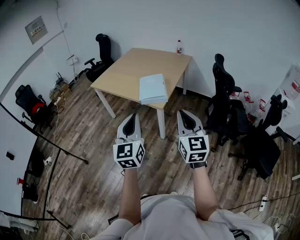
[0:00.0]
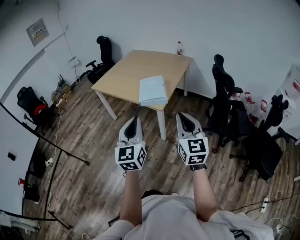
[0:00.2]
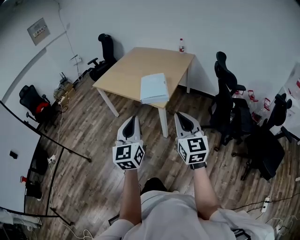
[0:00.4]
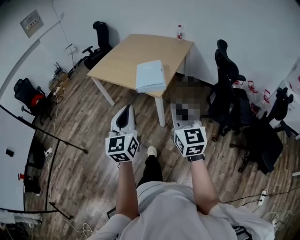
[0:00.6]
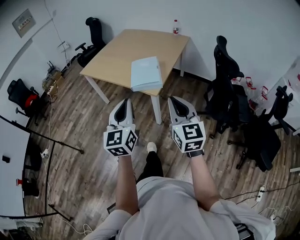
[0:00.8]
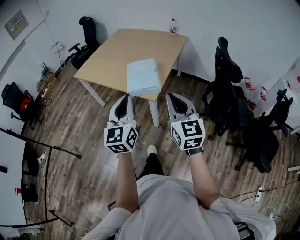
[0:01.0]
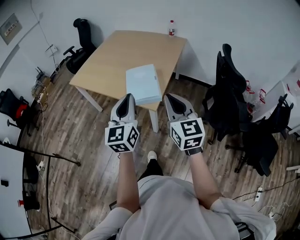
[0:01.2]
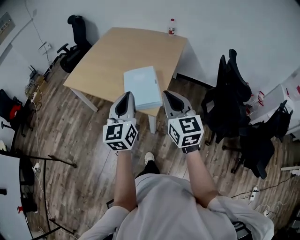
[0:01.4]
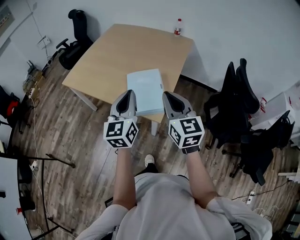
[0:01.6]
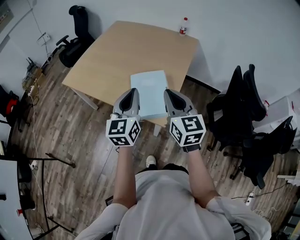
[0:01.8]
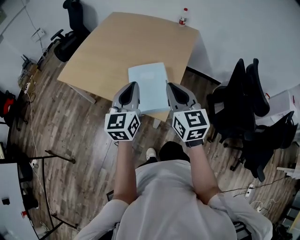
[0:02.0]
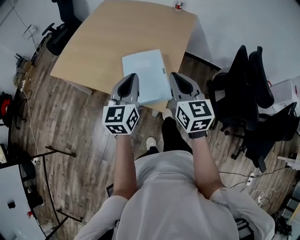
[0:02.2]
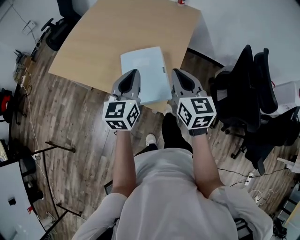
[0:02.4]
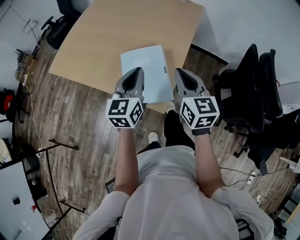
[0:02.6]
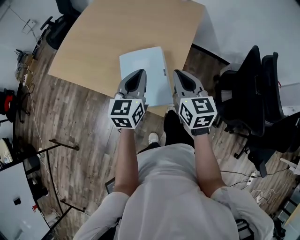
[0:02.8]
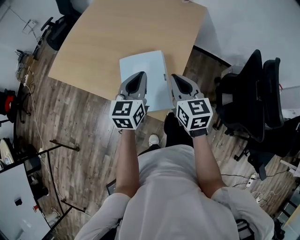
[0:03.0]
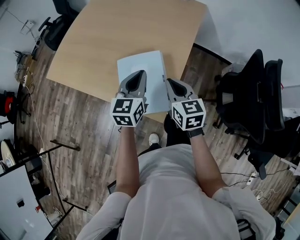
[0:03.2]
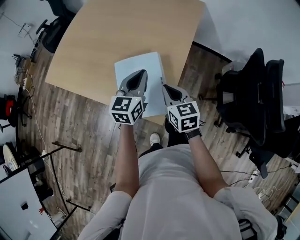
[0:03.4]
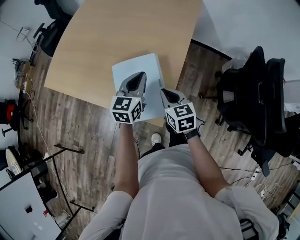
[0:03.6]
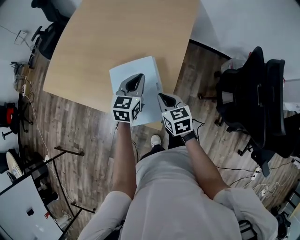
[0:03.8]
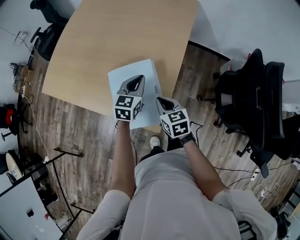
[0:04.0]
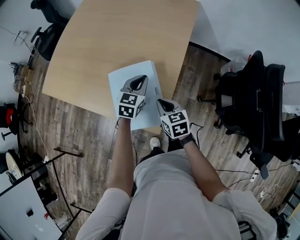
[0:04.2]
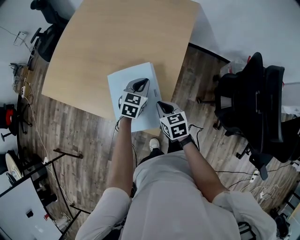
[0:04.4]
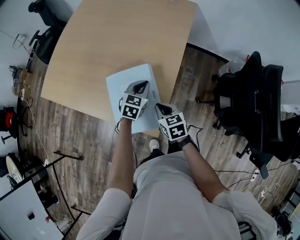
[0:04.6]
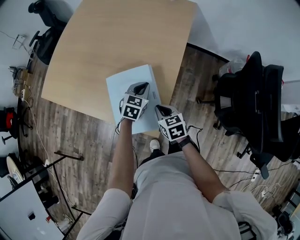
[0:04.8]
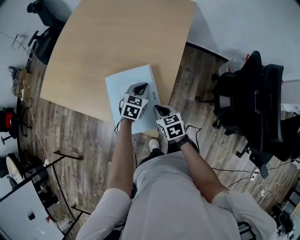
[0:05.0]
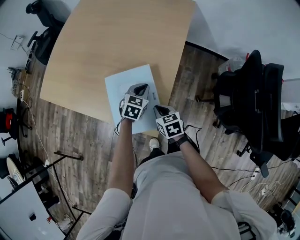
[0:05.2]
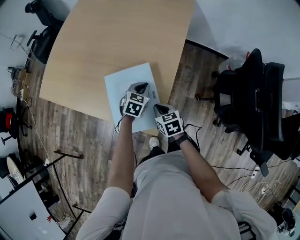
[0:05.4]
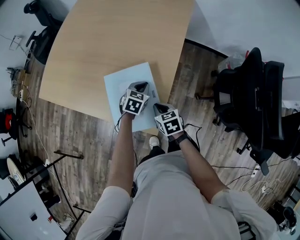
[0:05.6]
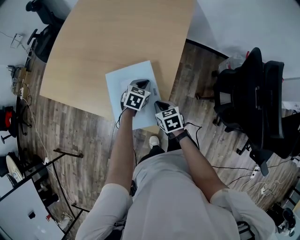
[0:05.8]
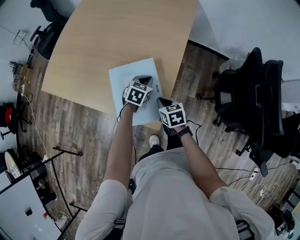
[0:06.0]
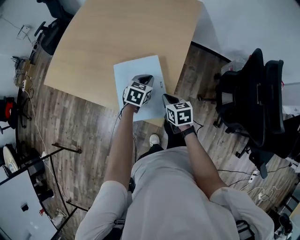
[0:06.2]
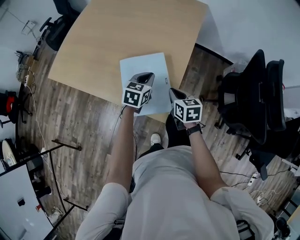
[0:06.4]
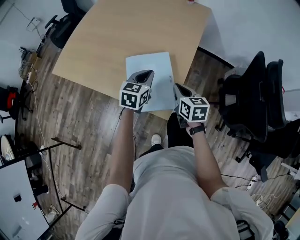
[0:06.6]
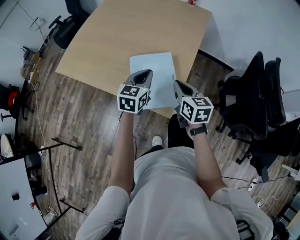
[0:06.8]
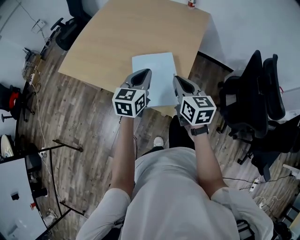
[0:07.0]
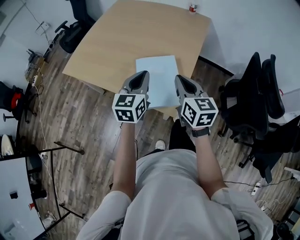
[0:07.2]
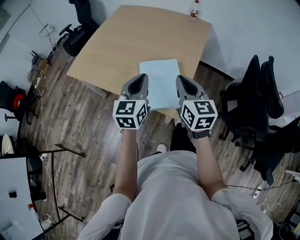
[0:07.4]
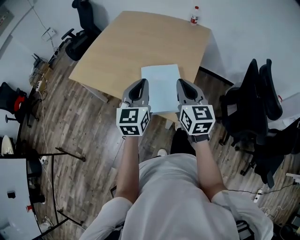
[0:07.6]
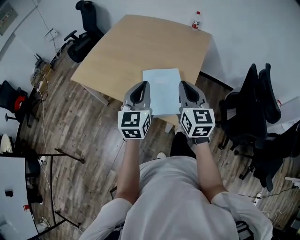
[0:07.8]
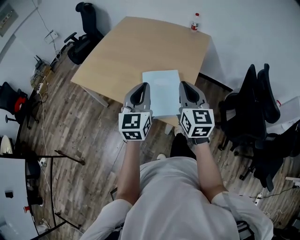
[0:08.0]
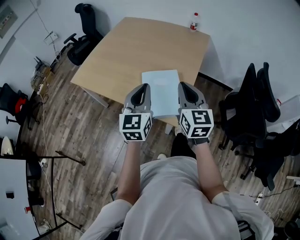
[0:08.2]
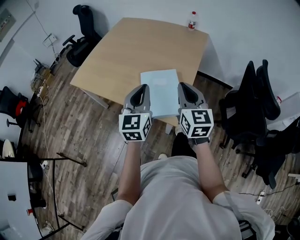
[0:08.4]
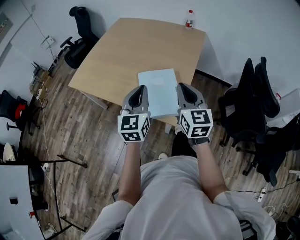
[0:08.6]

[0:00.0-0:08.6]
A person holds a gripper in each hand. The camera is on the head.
0:00.0 to 0:01.4: The grippers both shift forward by approximately 30 cm.
0:01.4 to 0:02.8: The grippers both shift forward and downward by some 25 cm.
0:02.8 to 0:04.4: The left gripper is displaced downward and forward by about 20 cm, and turns by approximately 30 degrees. Meanwhile the right gripper moves downward, approximately 20 cm, and changes its angle by roughly 30 degrees.
0:04.4 to 0:05.8: The two grippers go approximately 5 cm downward.
0:05.8 to 0:07.2: The left gripper travels upward, backward and to the left by roughly 30 cm, and angles its fingers upward, by roughly 40 degrees; the right gripper moves upward, approximately 25 cm, and tips its fingers upward by roughly 30 degrees.
0:07.2 to 0:08.6: The left gripper travels upward and backward by about 5 cm, while the right gripper changes place by roughly 5 cm.

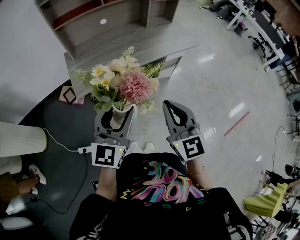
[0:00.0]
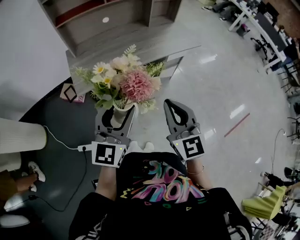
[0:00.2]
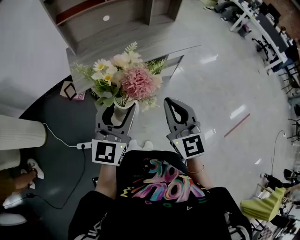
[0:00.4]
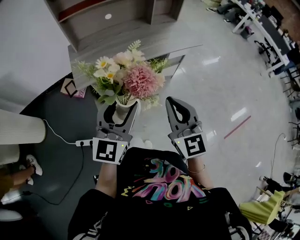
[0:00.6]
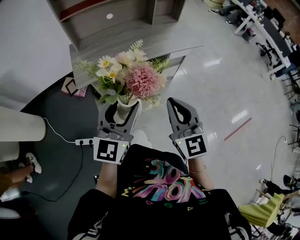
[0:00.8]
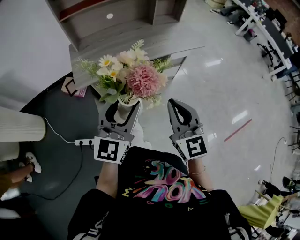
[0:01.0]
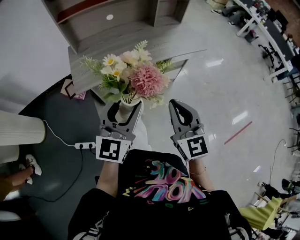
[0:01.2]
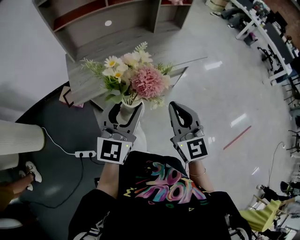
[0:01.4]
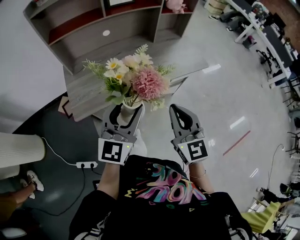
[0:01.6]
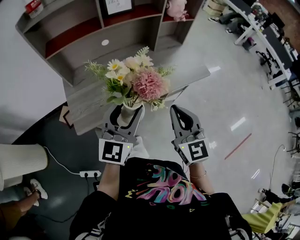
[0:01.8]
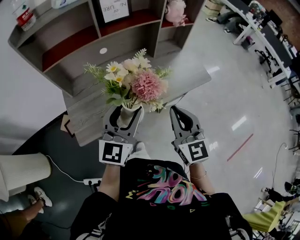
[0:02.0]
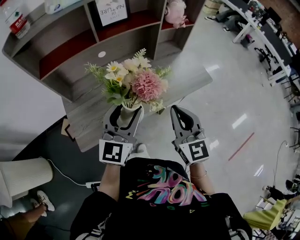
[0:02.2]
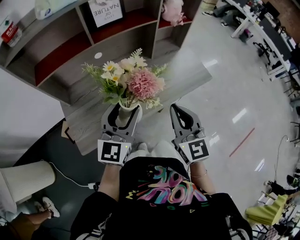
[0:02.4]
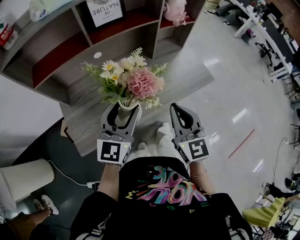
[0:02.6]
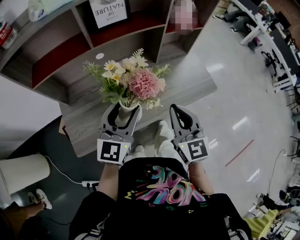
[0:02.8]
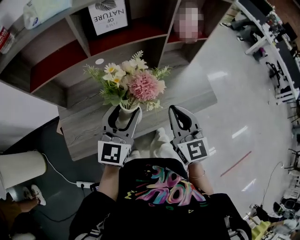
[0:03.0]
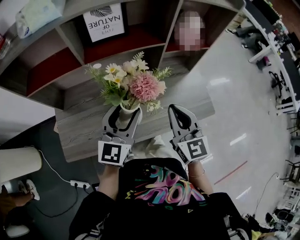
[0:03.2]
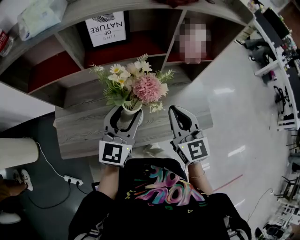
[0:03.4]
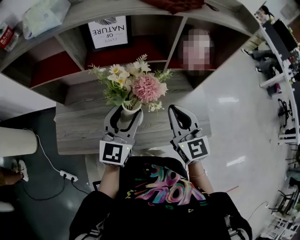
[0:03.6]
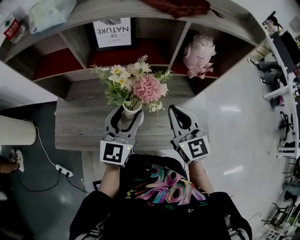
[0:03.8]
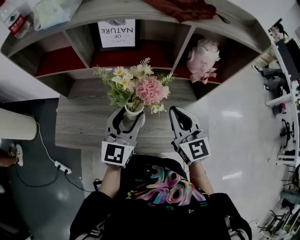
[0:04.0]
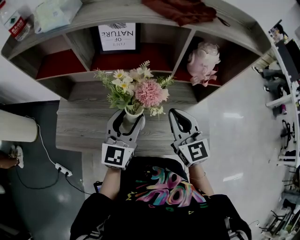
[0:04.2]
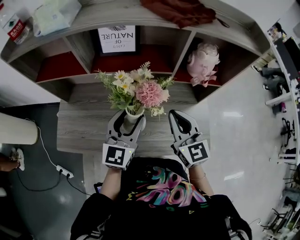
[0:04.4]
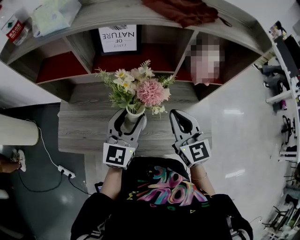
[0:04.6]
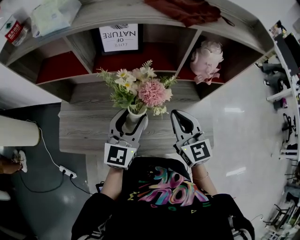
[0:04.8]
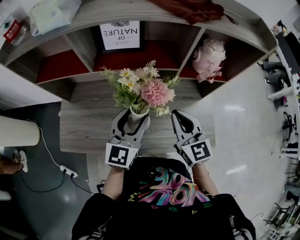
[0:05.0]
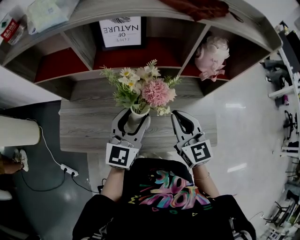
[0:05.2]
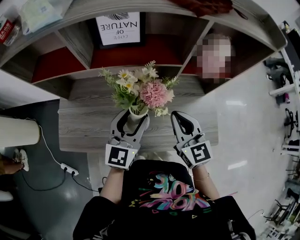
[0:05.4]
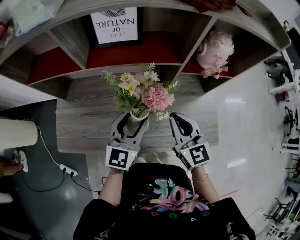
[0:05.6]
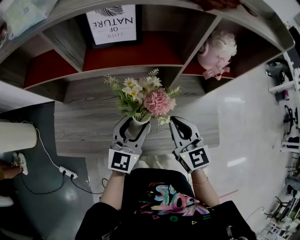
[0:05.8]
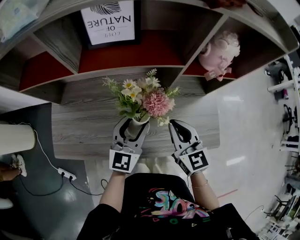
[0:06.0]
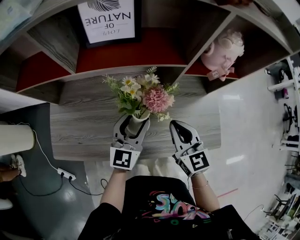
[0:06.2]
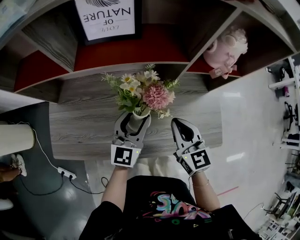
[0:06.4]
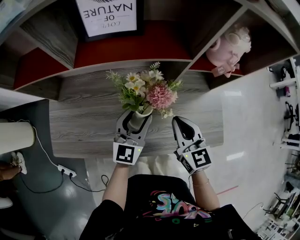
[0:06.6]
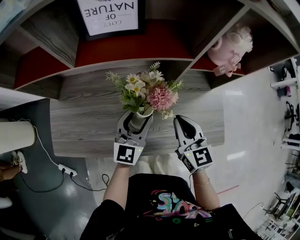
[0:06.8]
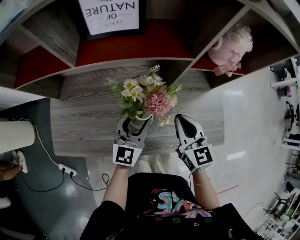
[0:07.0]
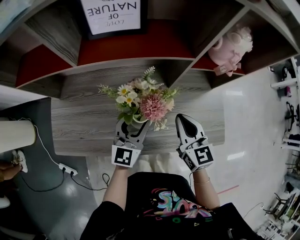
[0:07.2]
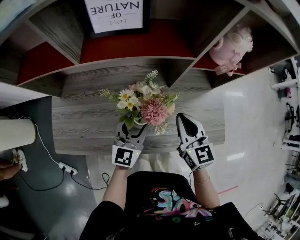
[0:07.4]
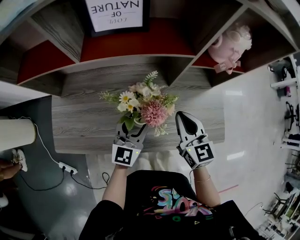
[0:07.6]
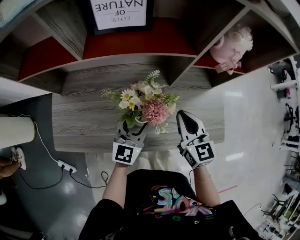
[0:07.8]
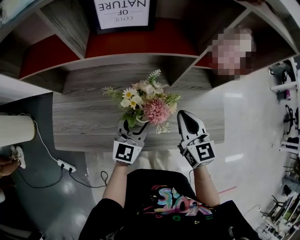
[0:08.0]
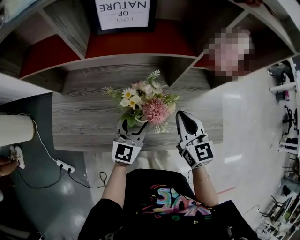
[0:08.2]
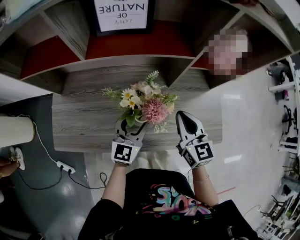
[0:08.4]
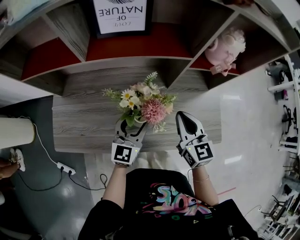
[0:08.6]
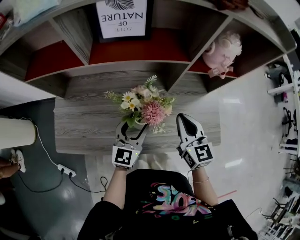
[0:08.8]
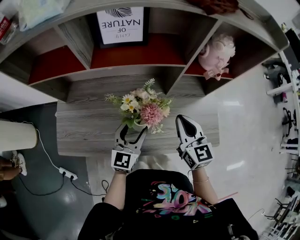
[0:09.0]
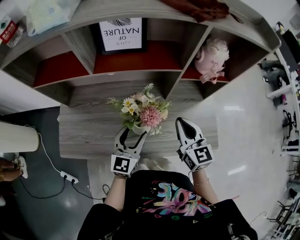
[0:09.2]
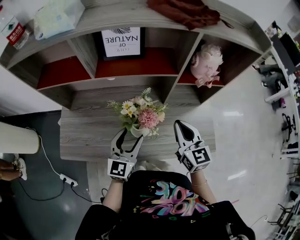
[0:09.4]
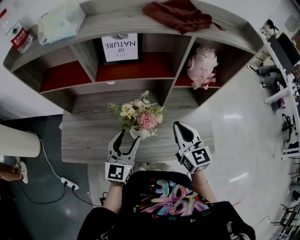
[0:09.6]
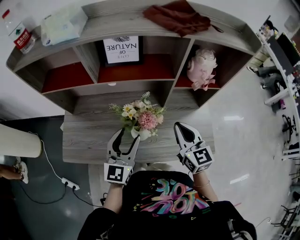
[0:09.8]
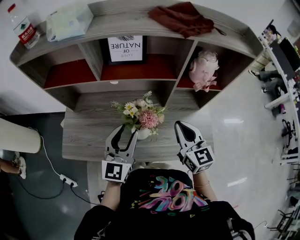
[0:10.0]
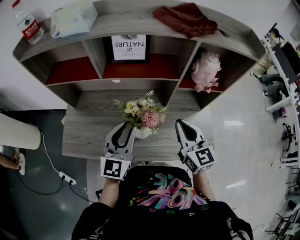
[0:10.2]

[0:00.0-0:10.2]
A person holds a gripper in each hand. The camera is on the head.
0:00.0 to 0:01.4: The grippers stay close to where they were, moving slightly.
0:01.4 to 0:03.0: Both grippers travel together forward, about 15 cm.
0:03.0 to 0:04.4: The grippers both shift forward and to the right by approximately 20 cm. The right gripper swivels about 20 degrees.
0:05.8 to 0:07.2: The two grippers go approximately 5 cm downward.
0:07.2 to 0:08.8: The grippers move only a little.
0:08.8 to 0:10.2: Both grippers travel together upward, about 10 cm. The left gripper closes its fingers.

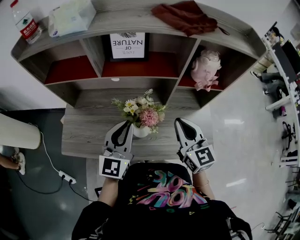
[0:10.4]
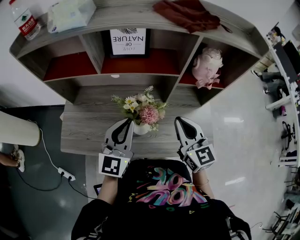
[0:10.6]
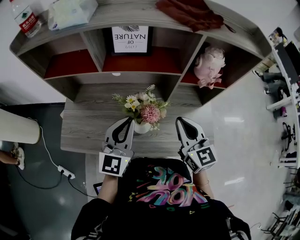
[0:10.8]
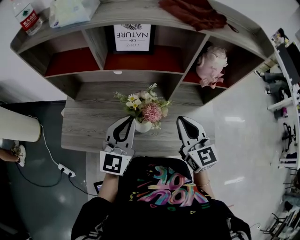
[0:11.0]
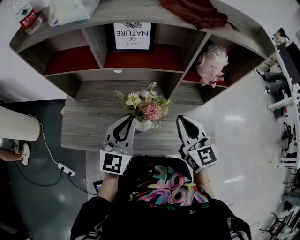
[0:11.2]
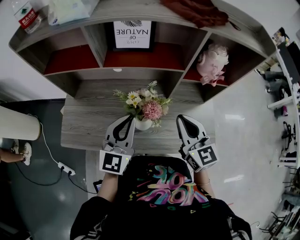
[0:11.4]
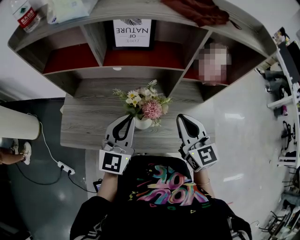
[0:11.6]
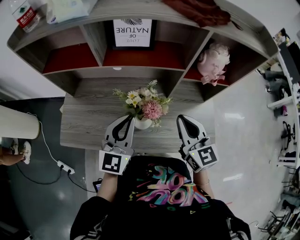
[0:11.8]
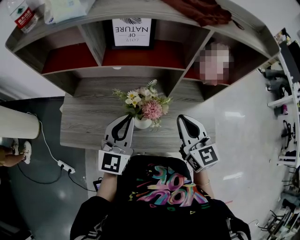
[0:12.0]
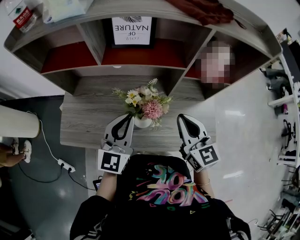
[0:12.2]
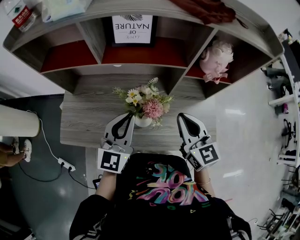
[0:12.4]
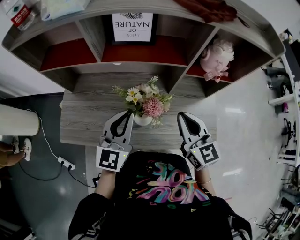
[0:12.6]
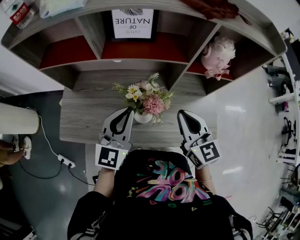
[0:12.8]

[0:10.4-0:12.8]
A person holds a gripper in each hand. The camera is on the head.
0:10.4 to 0:11.6: Neither gripper changes place.
0:11.6 to 0:12.8: The grippers move only a little.

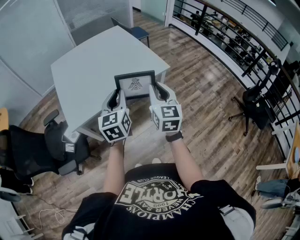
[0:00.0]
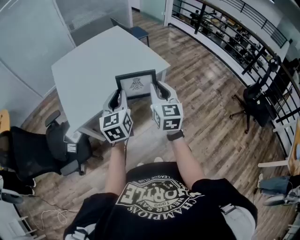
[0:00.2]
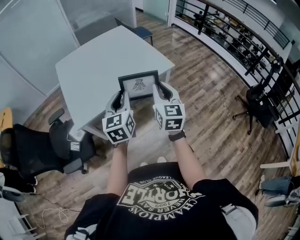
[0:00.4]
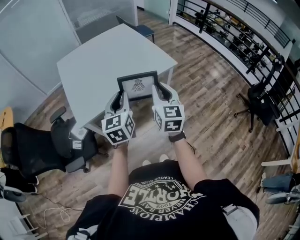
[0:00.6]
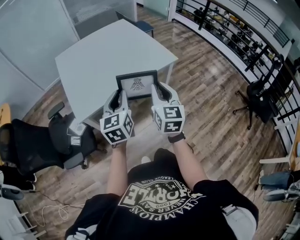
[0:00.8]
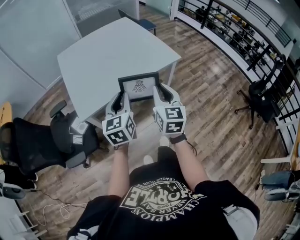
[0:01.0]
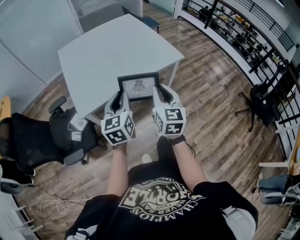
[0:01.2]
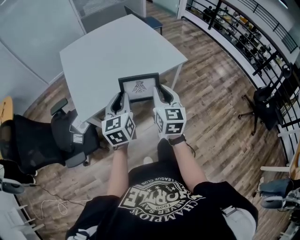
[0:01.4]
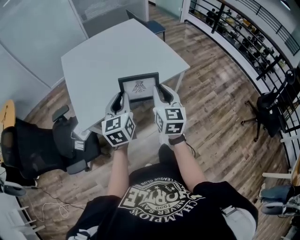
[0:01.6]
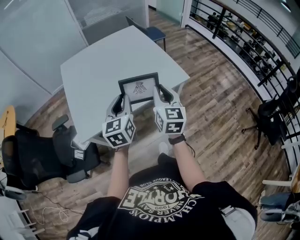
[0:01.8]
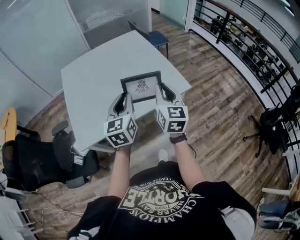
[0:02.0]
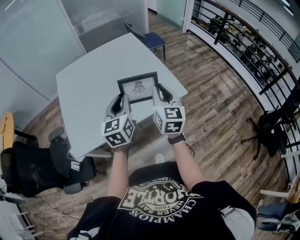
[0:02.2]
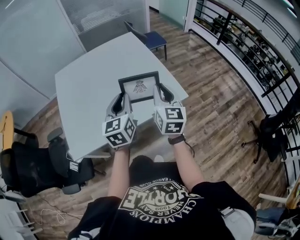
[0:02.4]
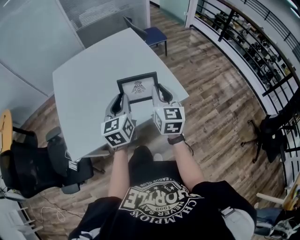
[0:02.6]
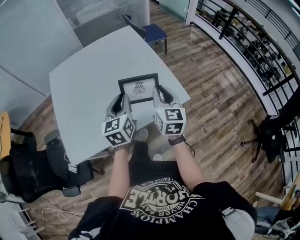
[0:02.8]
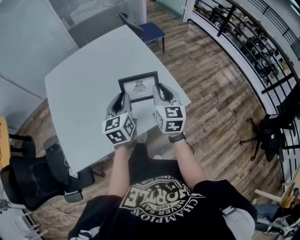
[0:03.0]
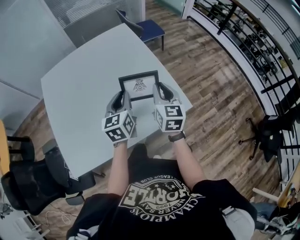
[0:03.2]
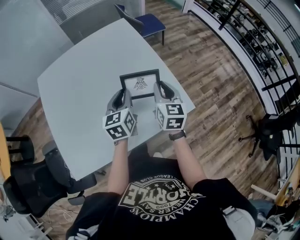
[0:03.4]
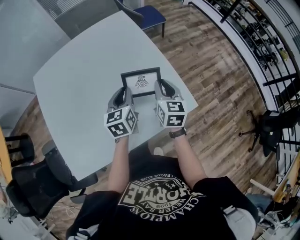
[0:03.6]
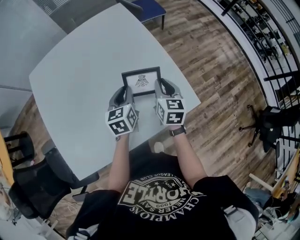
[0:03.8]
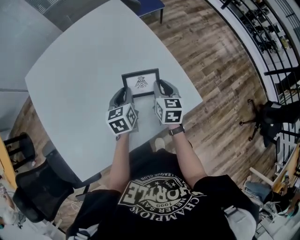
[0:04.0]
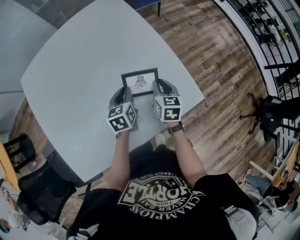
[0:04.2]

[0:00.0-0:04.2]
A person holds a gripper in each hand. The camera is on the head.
0:00.0 to 0:01.4: The grippers both shift to the left and downward by approximately 10 cm.
0:01.4 to 0:02.8: Both grippers are carried forward, some 40 cm.
0:02.8 to 0:04.2: The two grippers go roughly 40 cm forward and downward. The left gripper swivels roughly 30 degrees. Meanwhile the right gripper swivels about 30 degrees.
